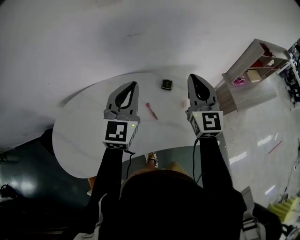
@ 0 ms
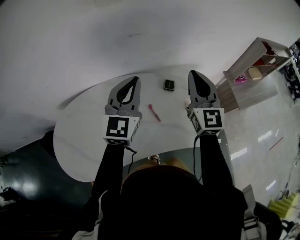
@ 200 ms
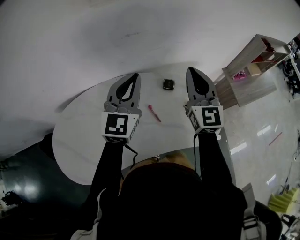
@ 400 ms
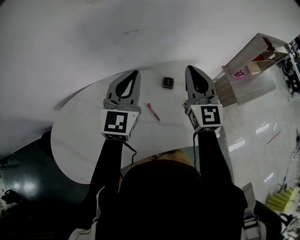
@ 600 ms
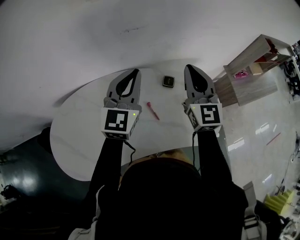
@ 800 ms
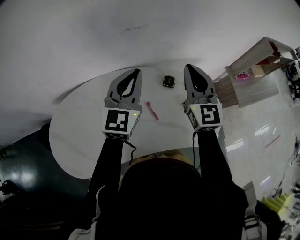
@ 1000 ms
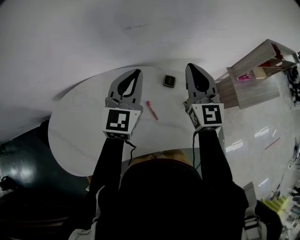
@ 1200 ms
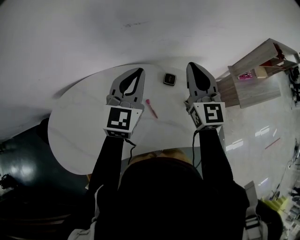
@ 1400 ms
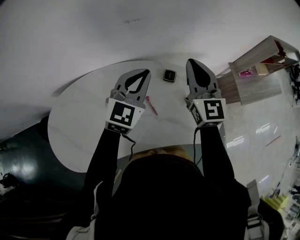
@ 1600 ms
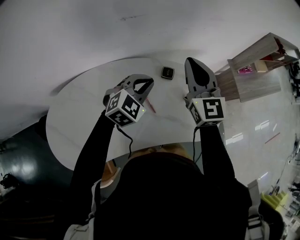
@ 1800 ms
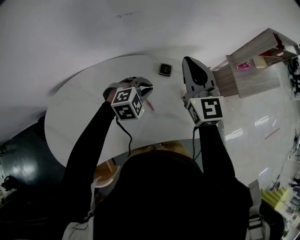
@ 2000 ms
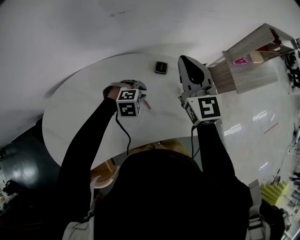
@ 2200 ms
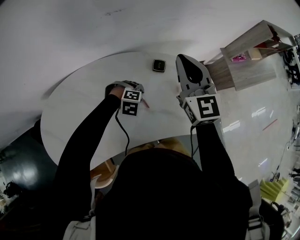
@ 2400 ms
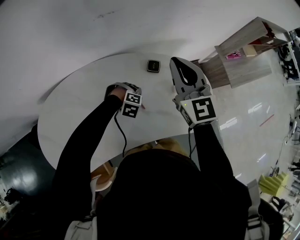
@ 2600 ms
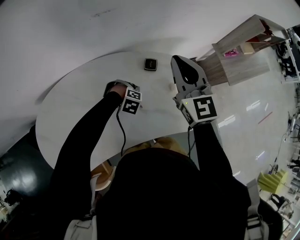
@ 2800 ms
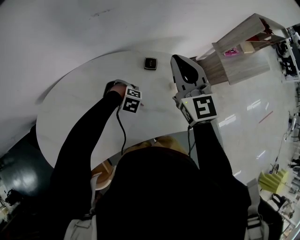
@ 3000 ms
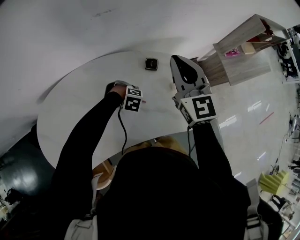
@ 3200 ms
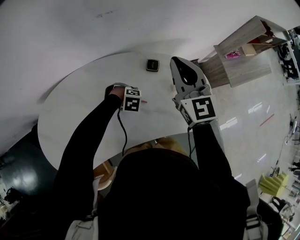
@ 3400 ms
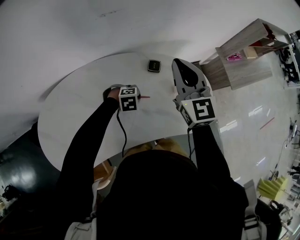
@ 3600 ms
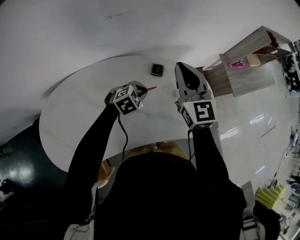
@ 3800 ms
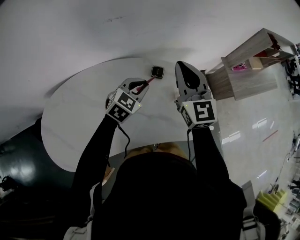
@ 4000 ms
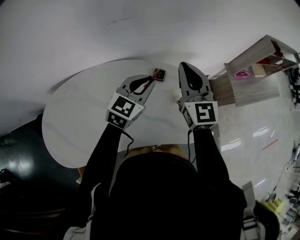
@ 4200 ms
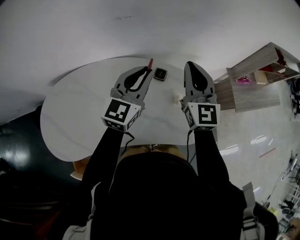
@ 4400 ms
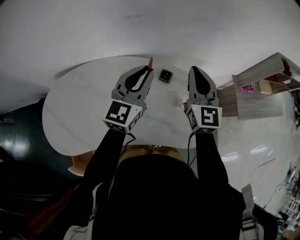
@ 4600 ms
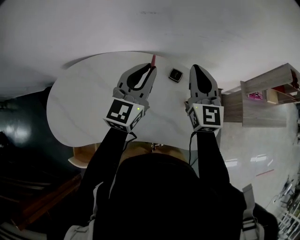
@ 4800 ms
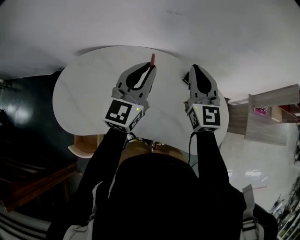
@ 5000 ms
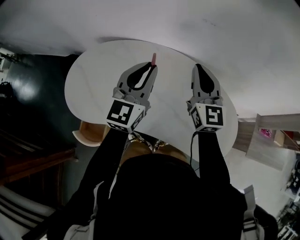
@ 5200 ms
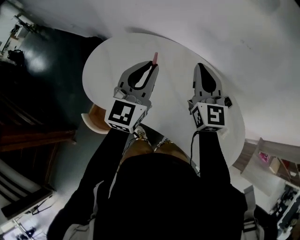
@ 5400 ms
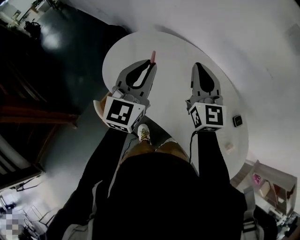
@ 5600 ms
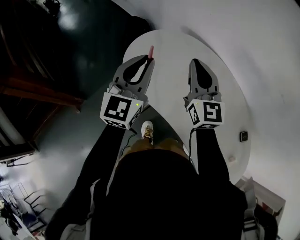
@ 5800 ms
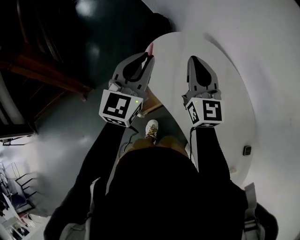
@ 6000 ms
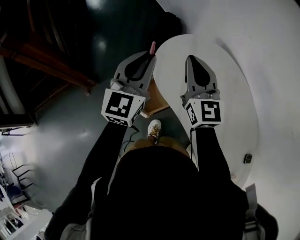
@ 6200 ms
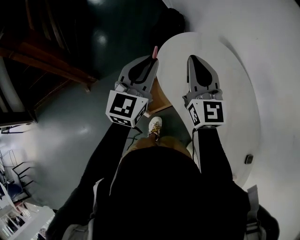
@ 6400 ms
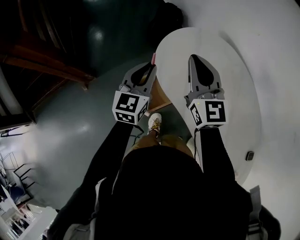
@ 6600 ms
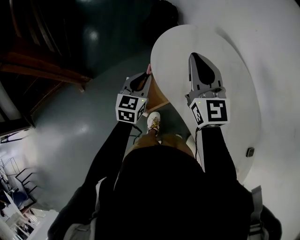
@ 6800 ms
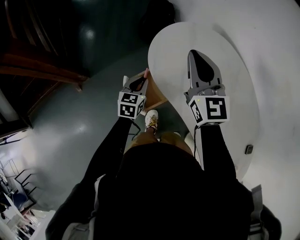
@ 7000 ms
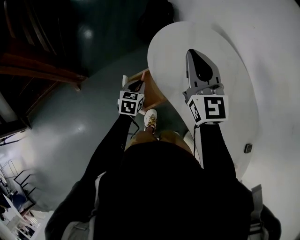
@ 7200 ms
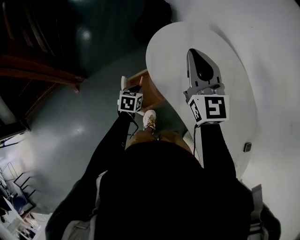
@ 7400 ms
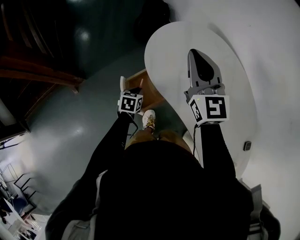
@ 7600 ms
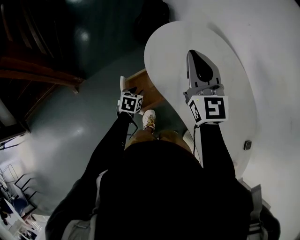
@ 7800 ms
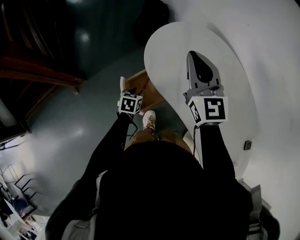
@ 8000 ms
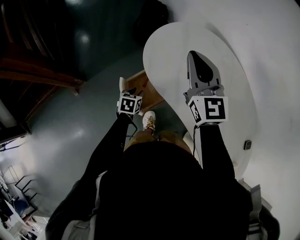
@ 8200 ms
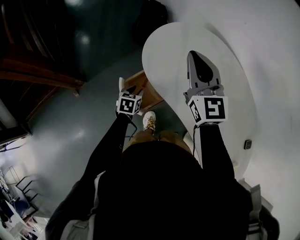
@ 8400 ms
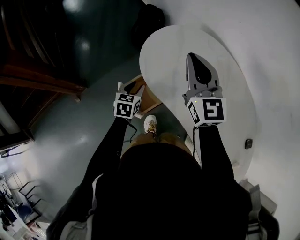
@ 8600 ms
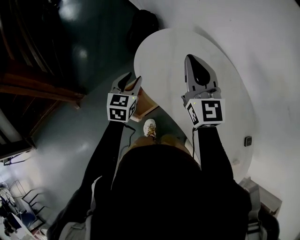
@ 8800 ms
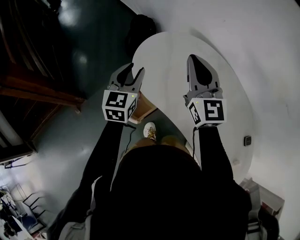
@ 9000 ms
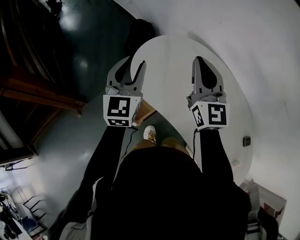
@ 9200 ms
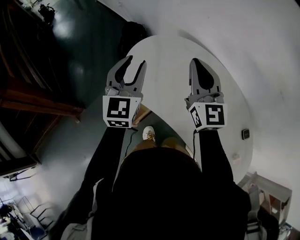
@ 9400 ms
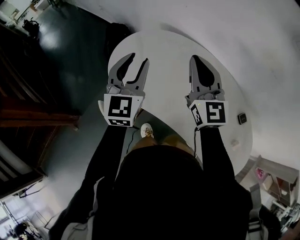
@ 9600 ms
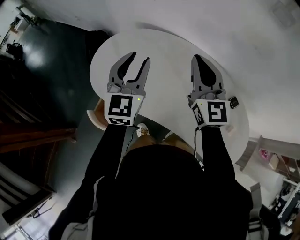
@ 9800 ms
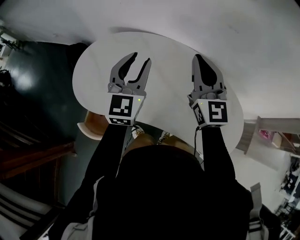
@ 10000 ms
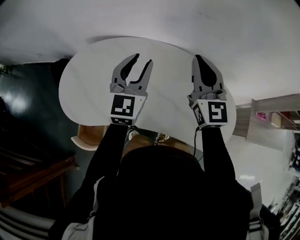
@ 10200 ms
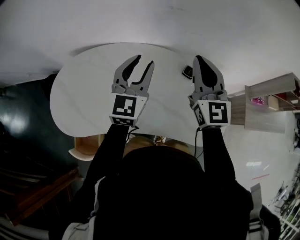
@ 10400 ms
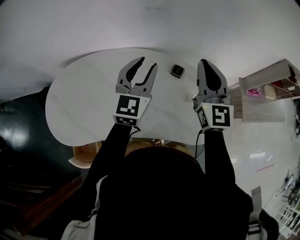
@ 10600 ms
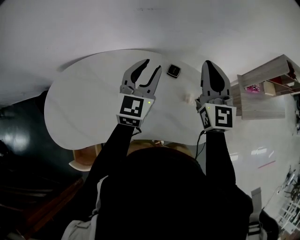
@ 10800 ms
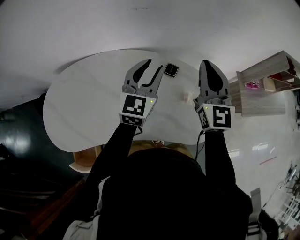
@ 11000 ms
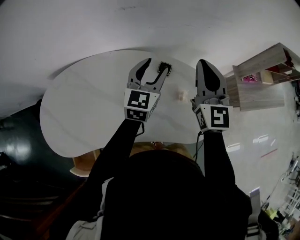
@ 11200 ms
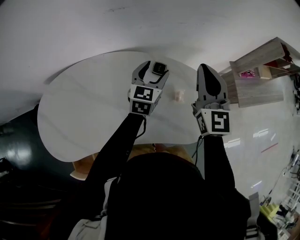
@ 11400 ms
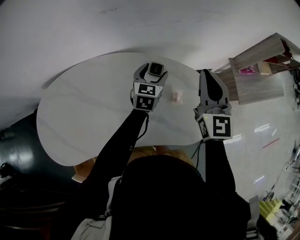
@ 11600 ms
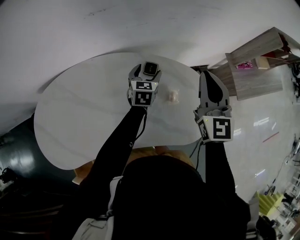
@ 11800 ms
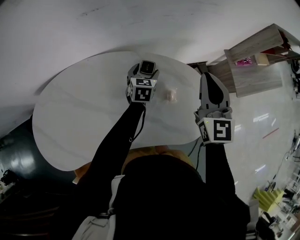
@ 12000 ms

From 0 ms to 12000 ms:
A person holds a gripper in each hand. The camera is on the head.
From 0 ms to 1600 ms: The right gripper shifts about 10 cm forward, while the left gripper is displaced forward and downward by about 10 cm.
From 1600 ms to 3000 ms: The left gripper goes some 30 cm downward, and tips its fingers downward by about 70 degrees.
From 3000 ms to 4400 ms: The left gripper goes some 35 cm upward, and angles its fingers upward, by roughly 80 degrees.
From 4400 ms to 6000 ms: The two grippers travel together, some 60 cm. The left gripper swivels about 80 degrees. Meanwhile the right gripper turns by roughly 70 degrees.
From 6000 ms to 7600 ms: The right gripper heads to the left, covering about 5 cm. Meanwhile the left gripper moves downward, approximately 40 cm, and tilts its fingers approximately 50 degrees downward.
From 7600 ms to 9000 ms: The left gripper travels upward by some 30 cm, and tips its fingers upward by some 40 degrees. The right gripper is displaced to the right by roughly 10 cm.
From 9000 ms to 10400 ms: The pair of grippers is taken some 50 cm. The right gripper swivels about 50 degrees. The left gripper turns by roughly 50 degrees.
From 10400 ms to 12000 ms: The right gripper heads to the right, covering some 20 cm, and swivels some 30 degrees, while the left gripper goes some 35 cm downward, to the right and forward, points its fingers about 30 degrees further downward, and opens up.

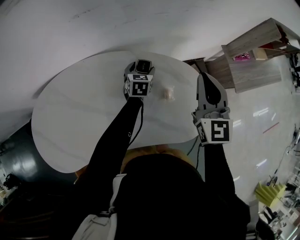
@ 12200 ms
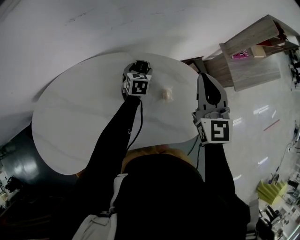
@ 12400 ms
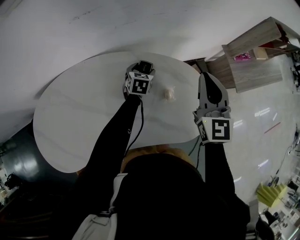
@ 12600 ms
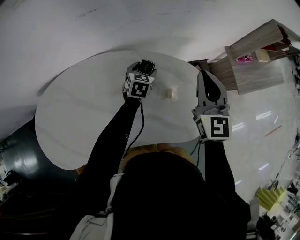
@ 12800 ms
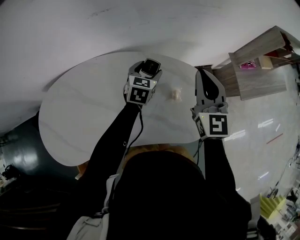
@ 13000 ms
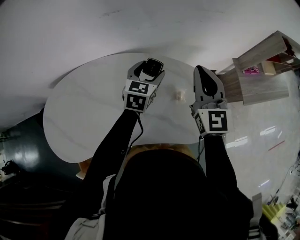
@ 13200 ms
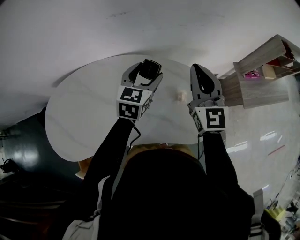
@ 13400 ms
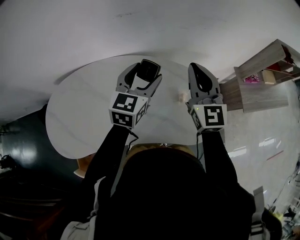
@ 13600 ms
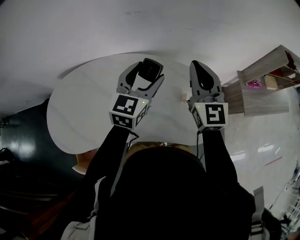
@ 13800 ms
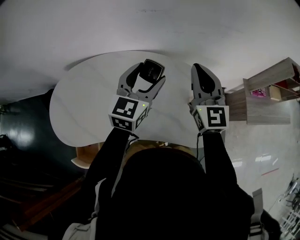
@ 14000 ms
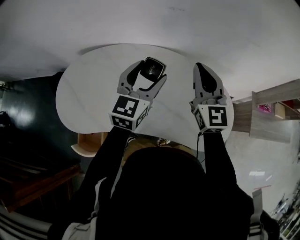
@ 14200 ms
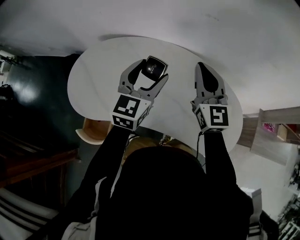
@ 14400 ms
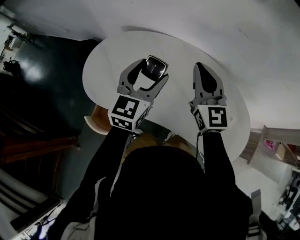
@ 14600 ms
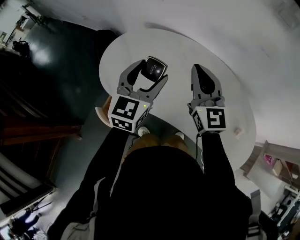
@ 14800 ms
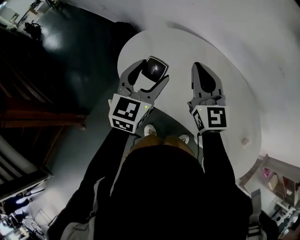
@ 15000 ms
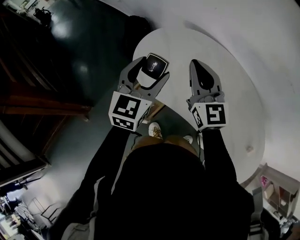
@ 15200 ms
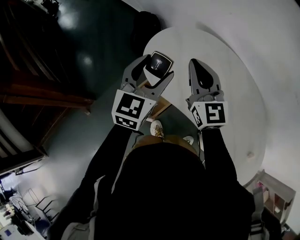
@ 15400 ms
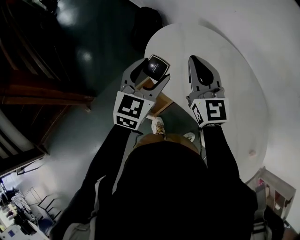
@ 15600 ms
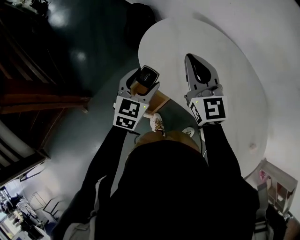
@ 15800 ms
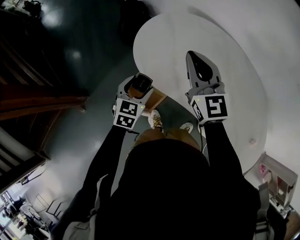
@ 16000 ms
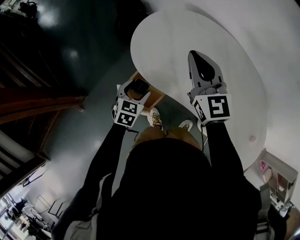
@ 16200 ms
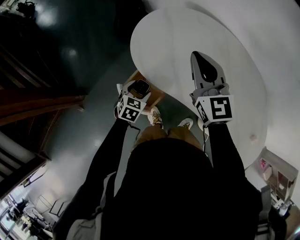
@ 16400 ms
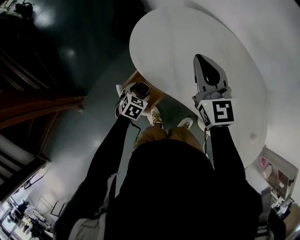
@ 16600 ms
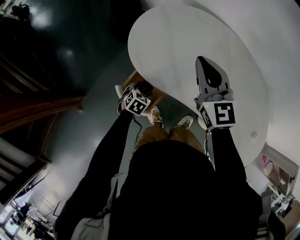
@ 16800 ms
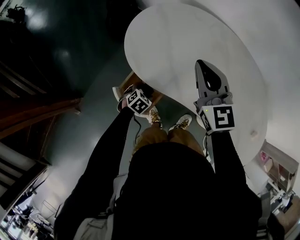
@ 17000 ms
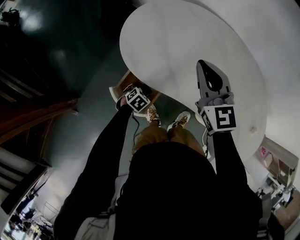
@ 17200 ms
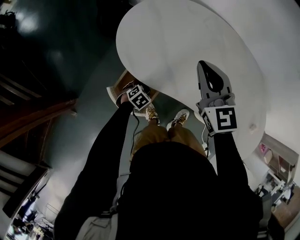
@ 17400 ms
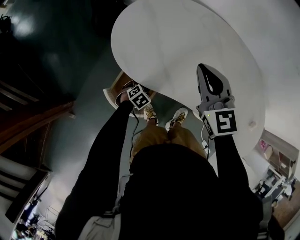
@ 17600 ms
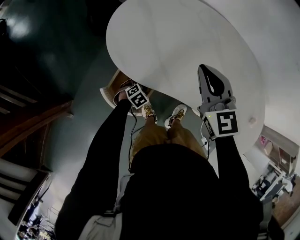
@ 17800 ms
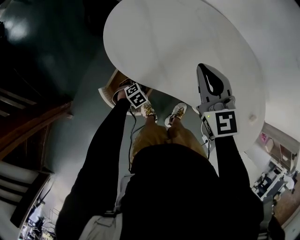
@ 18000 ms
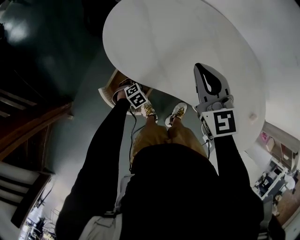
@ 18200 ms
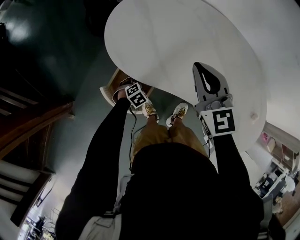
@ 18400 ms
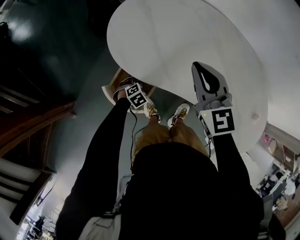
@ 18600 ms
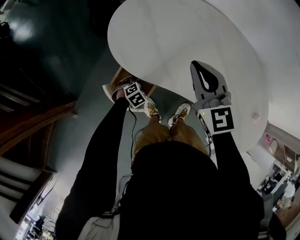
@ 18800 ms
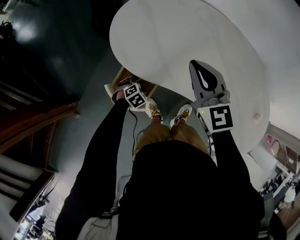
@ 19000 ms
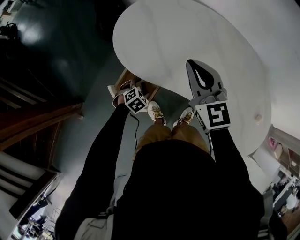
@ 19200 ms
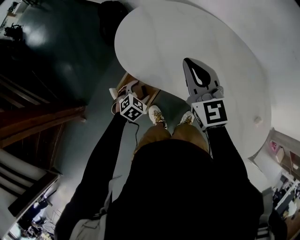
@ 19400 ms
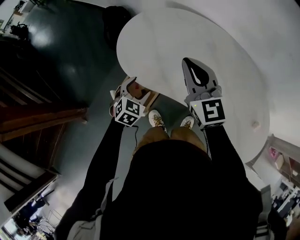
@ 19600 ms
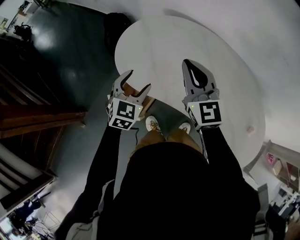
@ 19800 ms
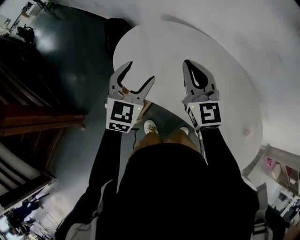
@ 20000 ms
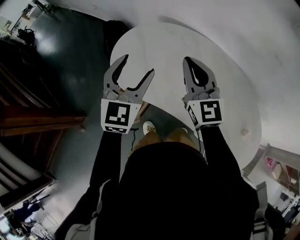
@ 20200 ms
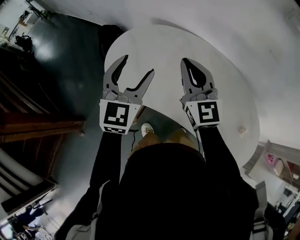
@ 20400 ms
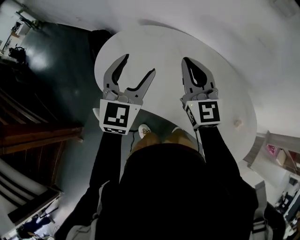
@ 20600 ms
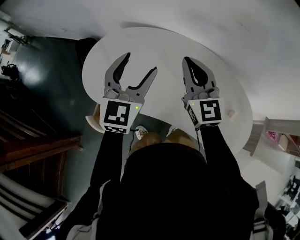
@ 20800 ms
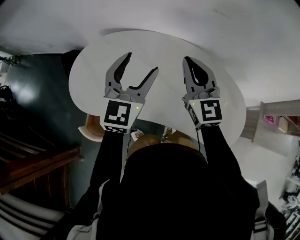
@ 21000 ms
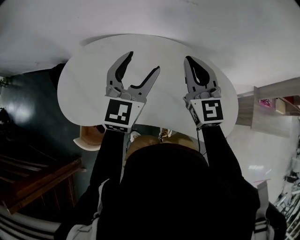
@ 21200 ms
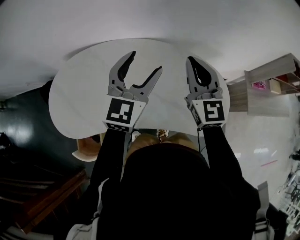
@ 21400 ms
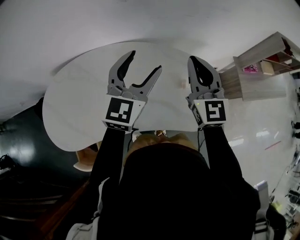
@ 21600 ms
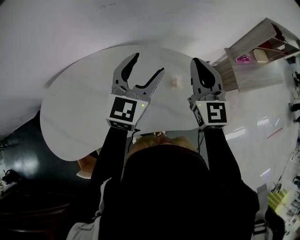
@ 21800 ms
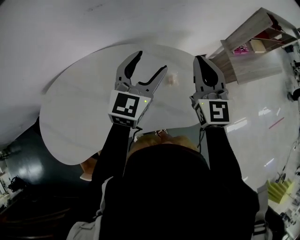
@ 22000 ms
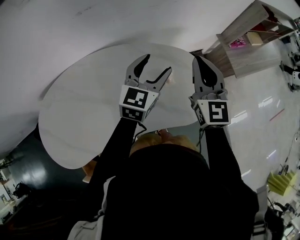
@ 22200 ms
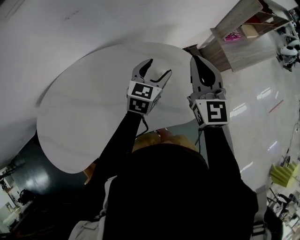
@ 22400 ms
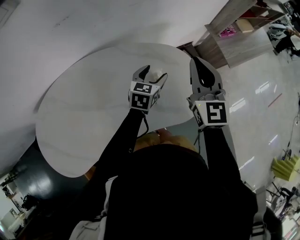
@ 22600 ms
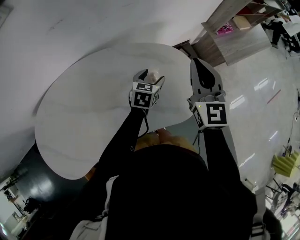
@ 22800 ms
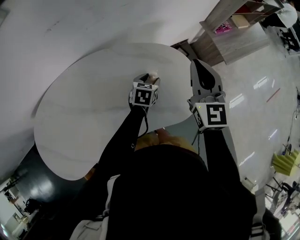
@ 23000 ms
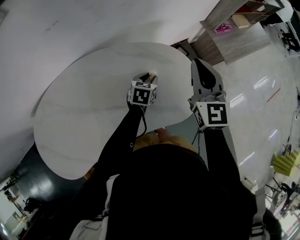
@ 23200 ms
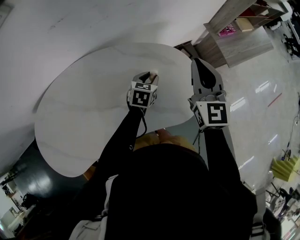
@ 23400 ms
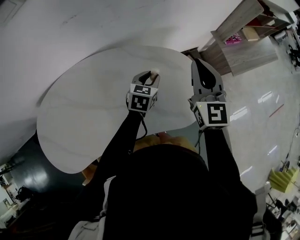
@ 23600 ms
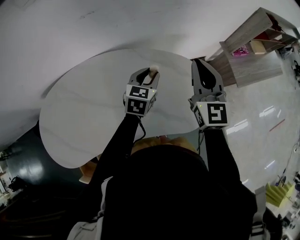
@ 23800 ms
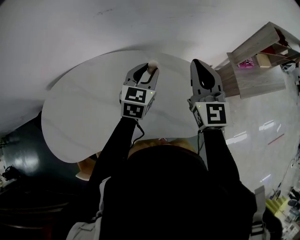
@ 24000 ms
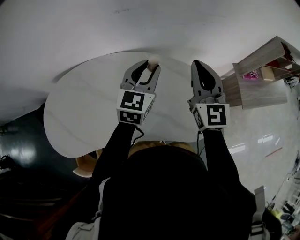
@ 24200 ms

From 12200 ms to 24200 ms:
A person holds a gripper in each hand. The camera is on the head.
From 12200 ms to 13800 ms: The left gripper heads upward and backward, covering about 30 cm, and swivels approximately 30 degrees; the right gripper travels to the left and upward by some 10 cm.
From 13800 ms to 15200 ms: The pair of grippers is taken approximately 60 cm. The right gripper changes its angle by roughly 60 degrees. Meanwhile the left gripper rotates roughly 50 degrees.
From 15200 ms to 16600 ms: The right gripper is displaced downward by roughly 5 cm; the left gripper moves downward, roughly 35 cm, and tilts its fingers some 40 degrees downward.
From 16600 ms to 18200 ms: The left gripper goes approximately 15 cm downward and to the right, and swivels about 40 degrees. The right gripper moves approximately 5 cm.
From 18200 ms to 19800 ms: The right gripper goes roughly 5 cm upward; the left gripper travels upward by about 35 cm, and tips its fingers upward by approximately 40 degrees.
From 19800 ms to 21200 ms: The left gripper changes place by approximately 40 cm, and swivels about 40 degrees. The right gripper moves about 35 cm, and rotates some 30 degrees.
From 21200 ms to 22600 ms: The right gripper shifts by approximately 30 cm, and turns by about 40 degrees; the left gripper ends up roughly 40 cm from where it was, and turns by roughly 50 degrees.
From 22600 ms to 24200 ms: The left gripper shifts roughly 20 cm upward, rotates roughly 30 degrees, and closes, while the right gripper moves about 10 cm.
